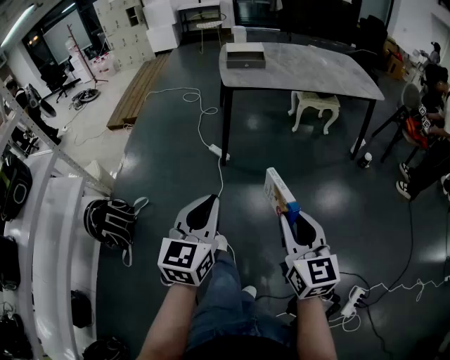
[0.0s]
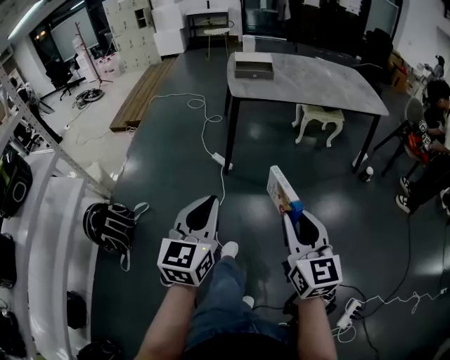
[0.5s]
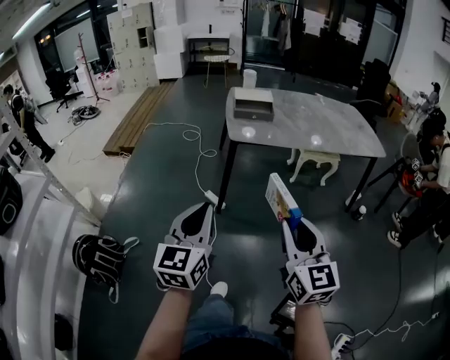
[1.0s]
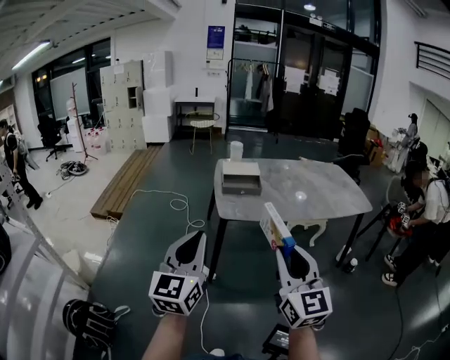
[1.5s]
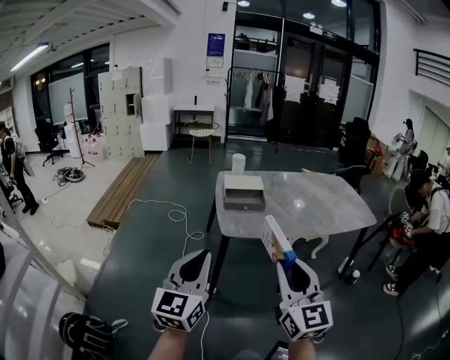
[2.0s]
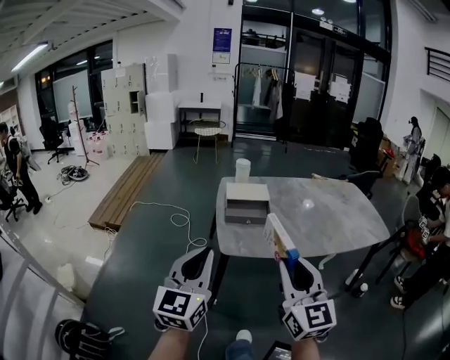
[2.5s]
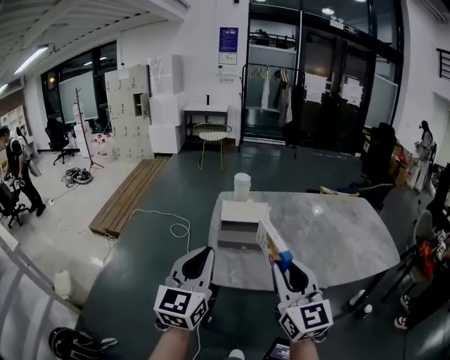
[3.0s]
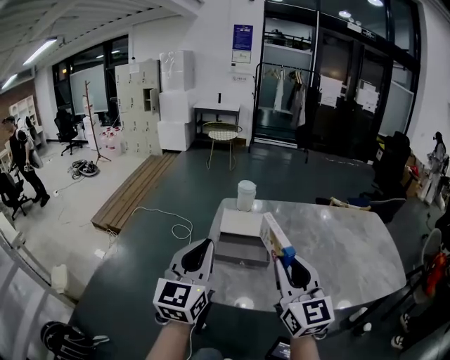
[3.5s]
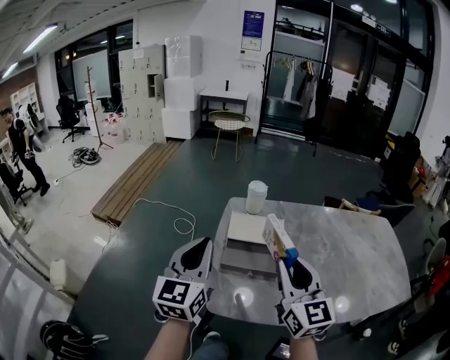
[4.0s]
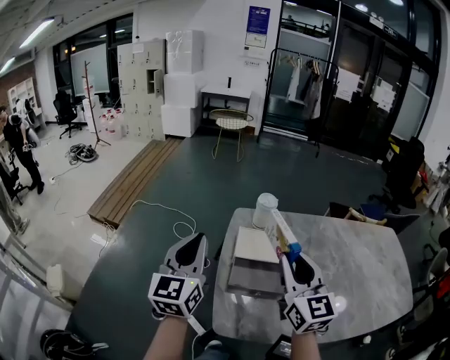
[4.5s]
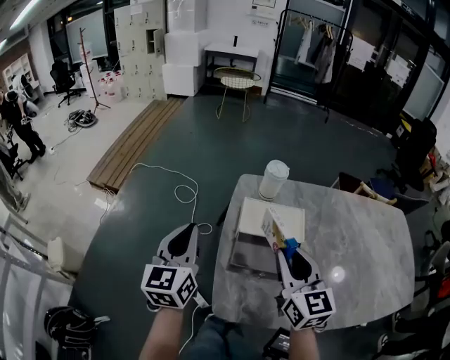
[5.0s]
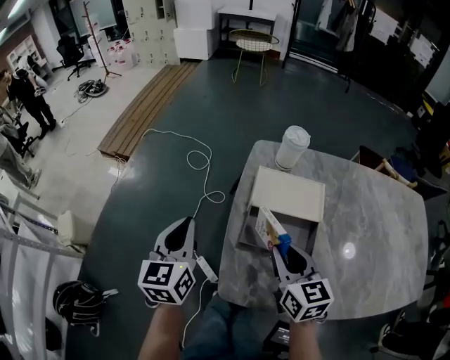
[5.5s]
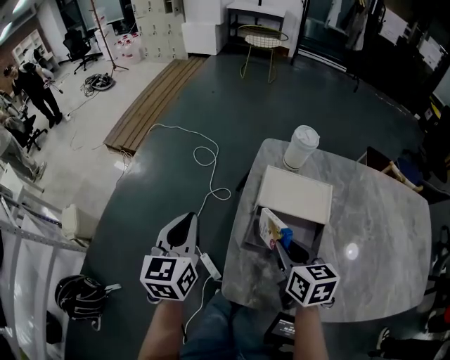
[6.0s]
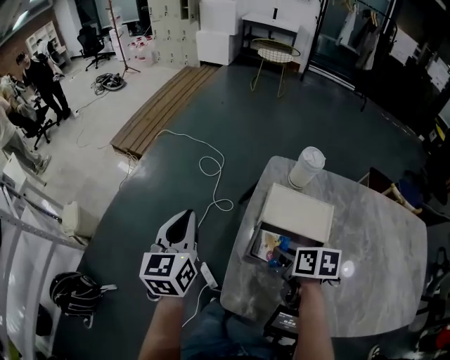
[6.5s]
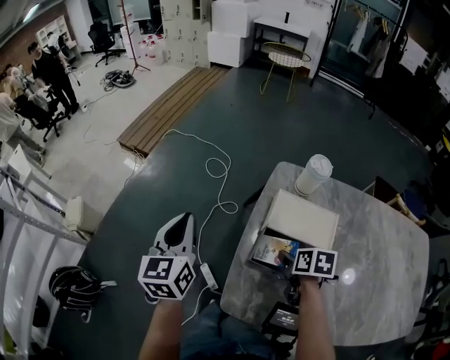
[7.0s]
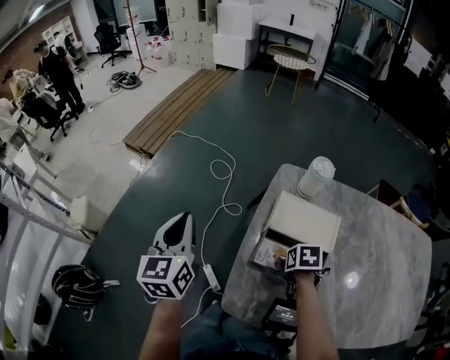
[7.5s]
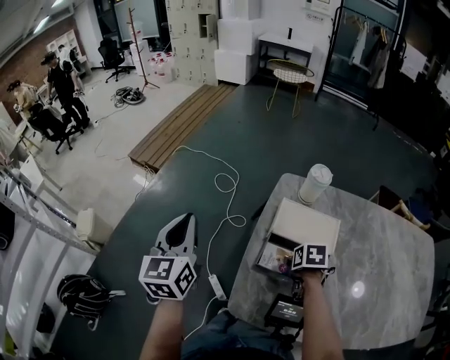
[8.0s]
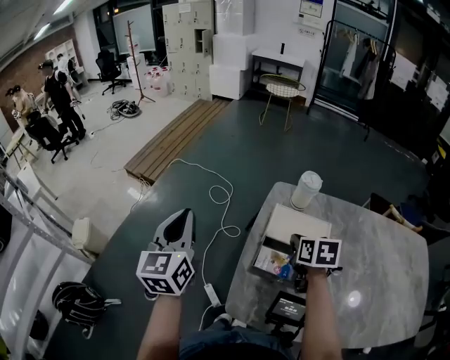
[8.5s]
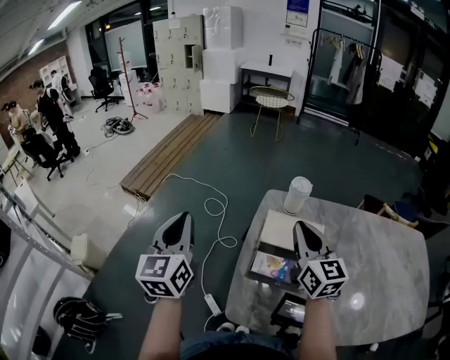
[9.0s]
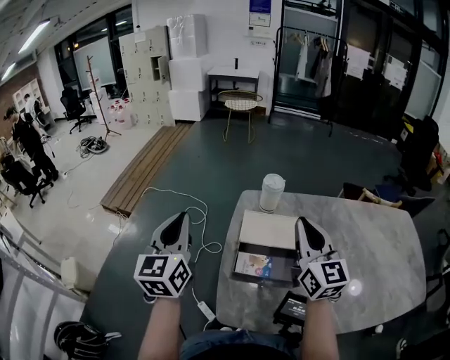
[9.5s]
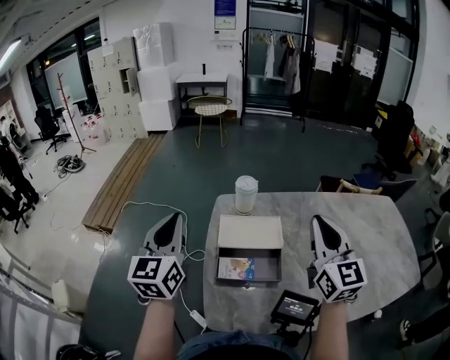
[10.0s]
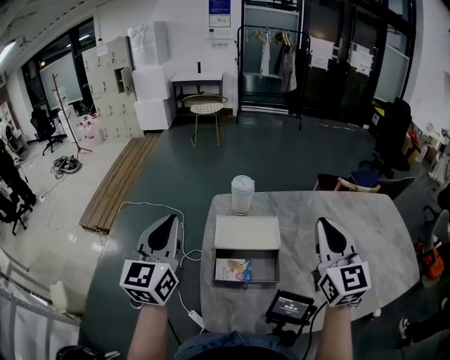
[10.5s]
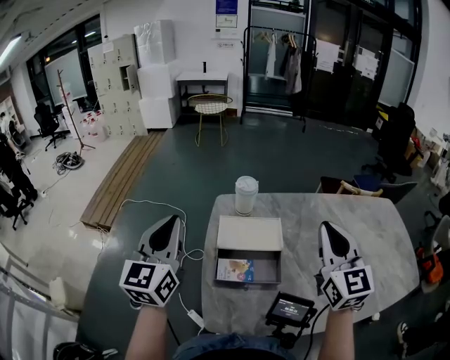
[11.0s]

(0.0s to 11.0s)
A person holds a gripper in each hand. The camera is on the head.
0.0s - 2.0s: The left gripper travels forward by roughly 30 cm; the right gripper is displaced forward and upward by approximately 35 cm, and turns by roughly 20 degrees.
2.0s - 3.5s: The grippers both shift forward by some 35 cm.
3.5s - 5.5s: The right gripper shifts some 25 cm downward and forward, and rotates roughly 40 degrees. Meanwhile the left gripper shifts roughly 25 cm downward, forward and to the left, and rotates some 30 degrees.
5.5s - 7.5s: The right gripper travels downward by some 15 cm, tilts its fingers approximately 50 degrees downward, and opens its fingers, while the left gripper ends up roughly 5 cm from where it was.
7.5s - 9.0s: The right gripper is displaced upward by roughly 30 cm, angles its fingers upward, by roughly 70 degrees, and closes, while the left gripper goes approximately 10 cm upward.
9.0s - 11.0s: The right gripper moves to the right, backward and upward, approximately 20 cm, and turns by roughly 30 degrees. The left gripper shifts some 10 cm to the right, and rotates roughly 20 degrees.

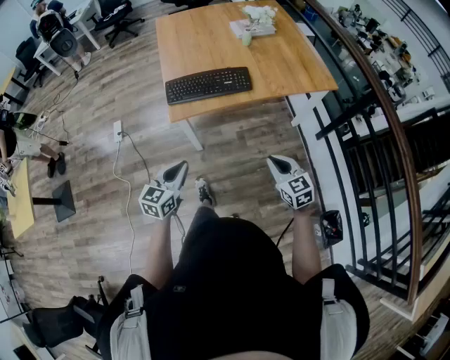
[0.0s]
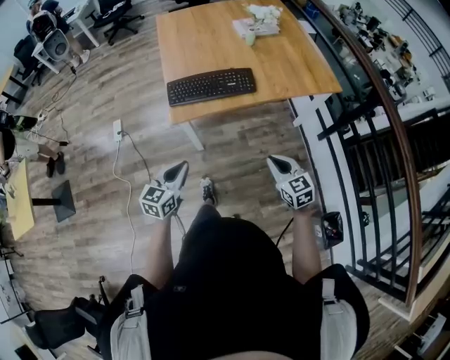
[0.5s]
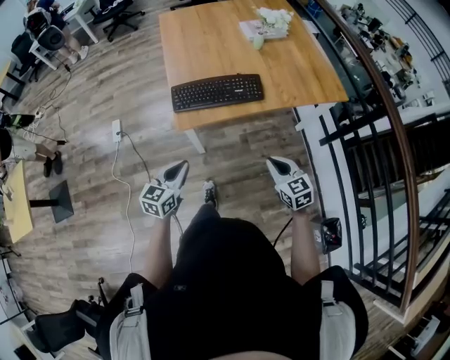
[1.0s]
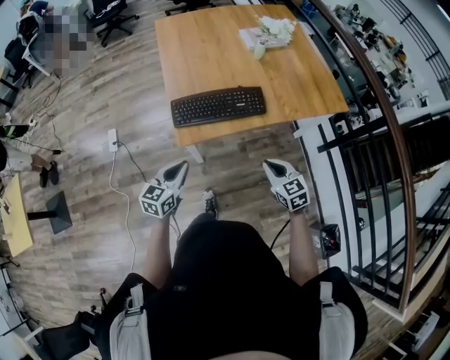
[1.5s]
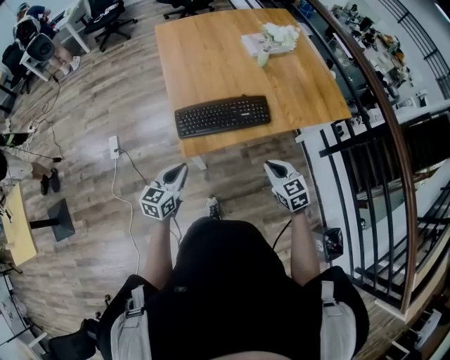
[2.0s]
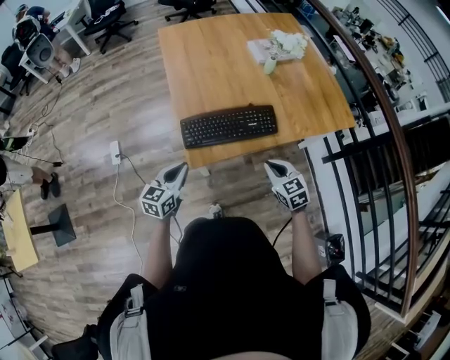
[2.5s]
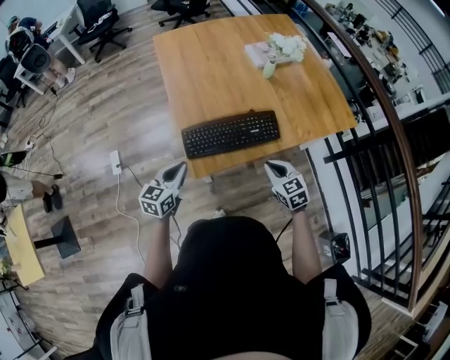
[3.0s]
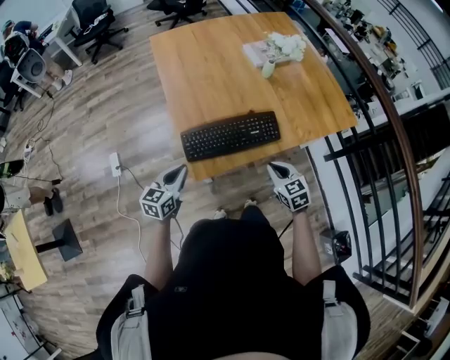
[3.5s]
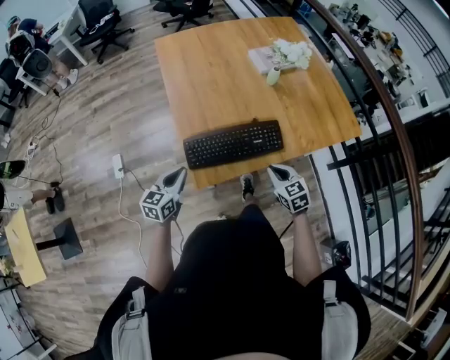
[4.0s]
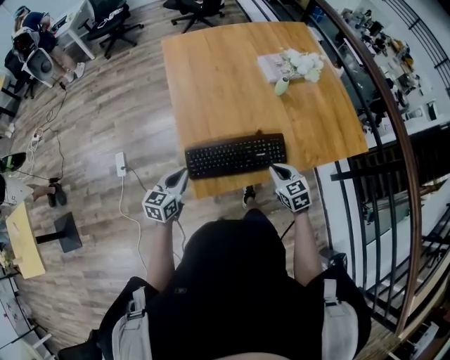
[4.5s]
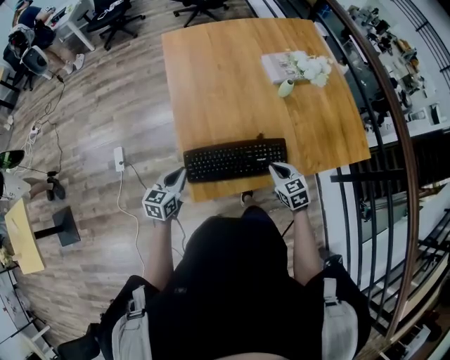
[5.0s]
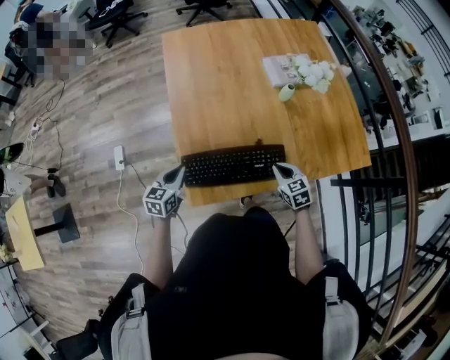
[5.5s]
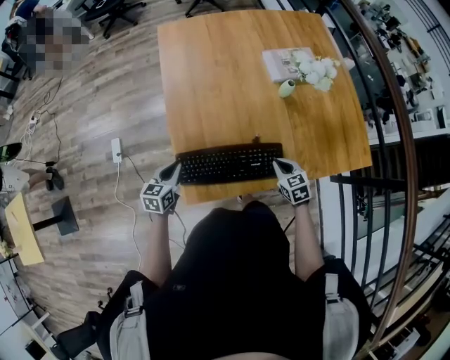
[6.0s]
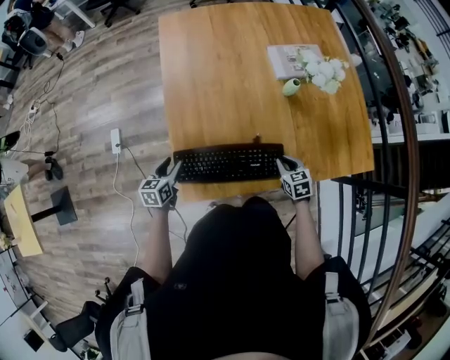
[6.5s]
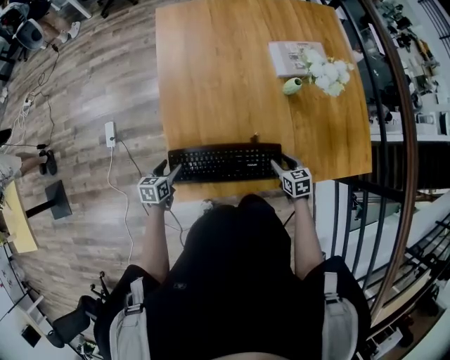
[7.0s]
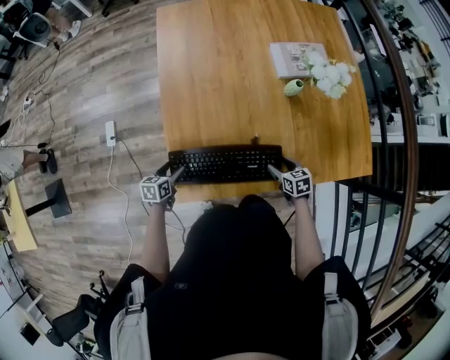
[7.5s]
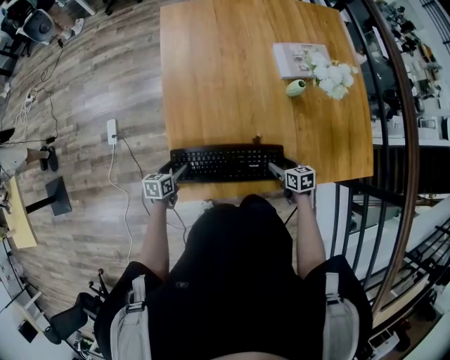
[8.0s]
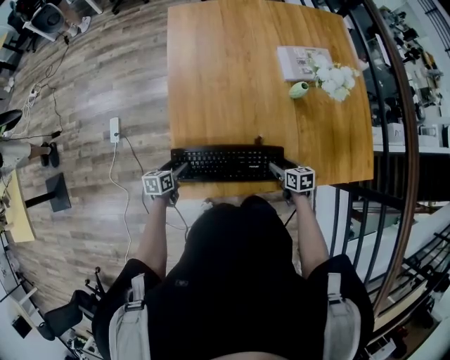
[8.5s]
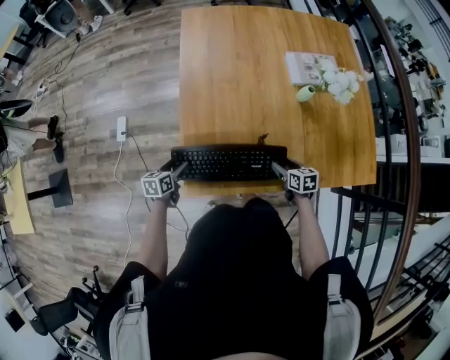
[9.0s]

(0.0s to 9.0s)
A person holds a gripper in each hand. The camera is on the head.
0.0s - 2.0s: The two grippers go about 25 cm forward and to the left.
2.0s - 4.5s: Both grippers travel together forward, about 20 cm.
4.5s - 7.0s: The right gripper travels downward, forward and to the right by some 20 cm, and opens up. Meanwhile the left gripper moves downward and forward, roughly 20 cm, rotates some 30 degrees, and opens up.
7.0s - 9.0s: The grippers stay close to where they were, moving slightly.

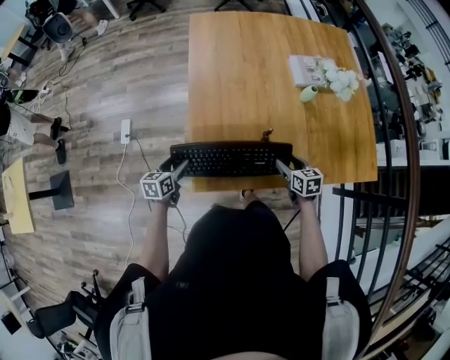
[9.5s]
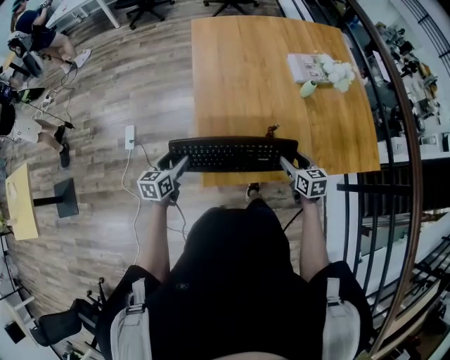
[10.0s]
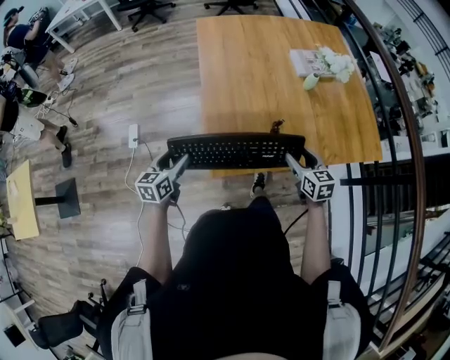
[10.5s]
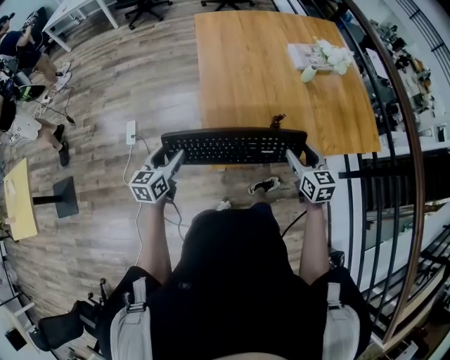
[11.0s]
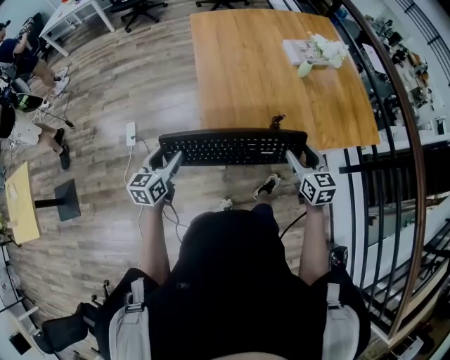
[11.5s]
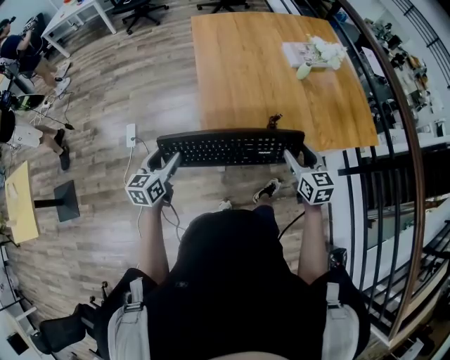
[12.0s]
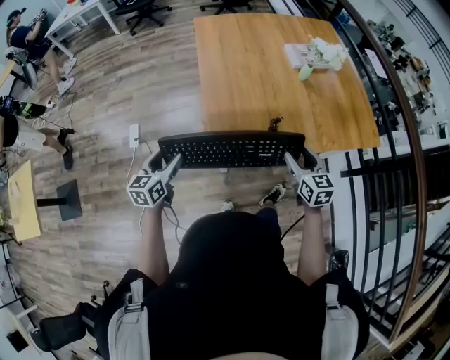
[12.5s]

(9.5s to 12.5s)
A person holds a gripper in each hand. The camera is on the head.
9.5s - 11.0s: Both grippers travel together upward, backward and to the left, roughly 20 cm. The right gripper rotates about 20 degrees.
11.0s - 12.5s: The grippers stay close to where they were, moving slightly.

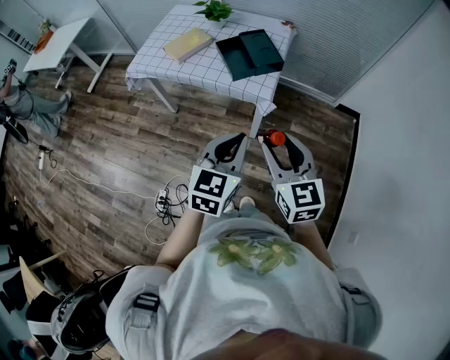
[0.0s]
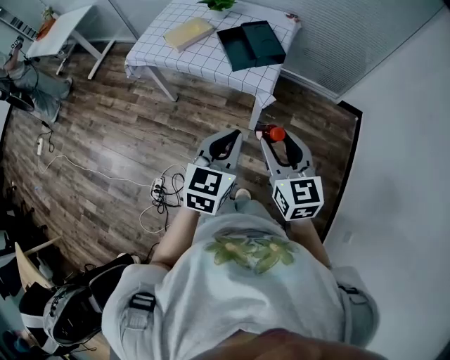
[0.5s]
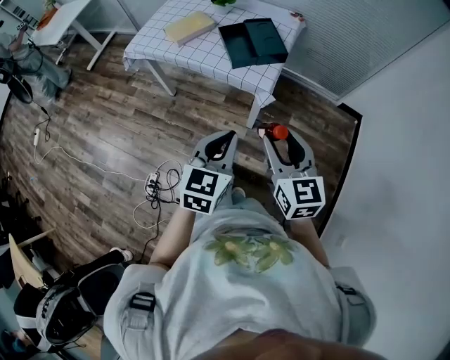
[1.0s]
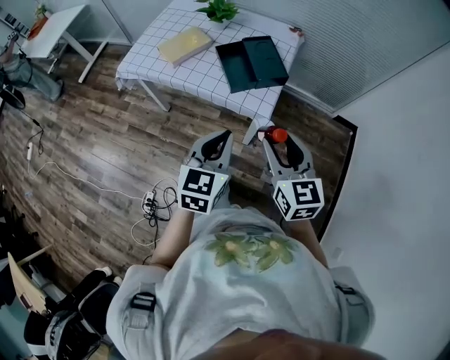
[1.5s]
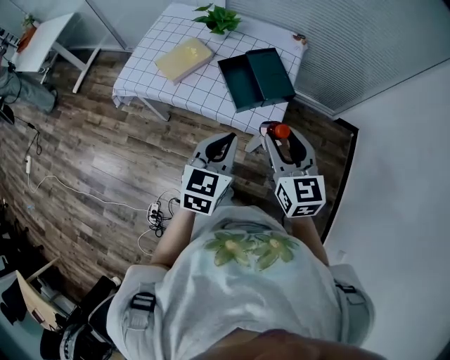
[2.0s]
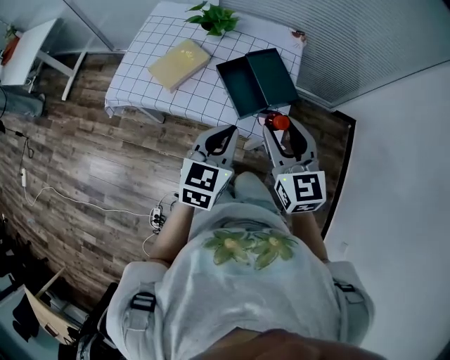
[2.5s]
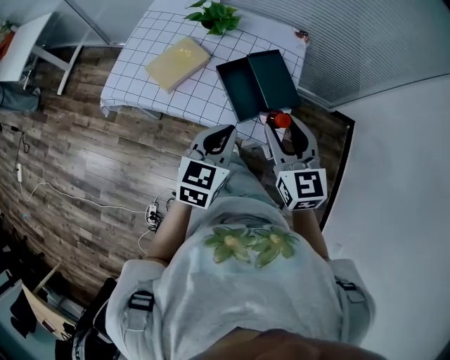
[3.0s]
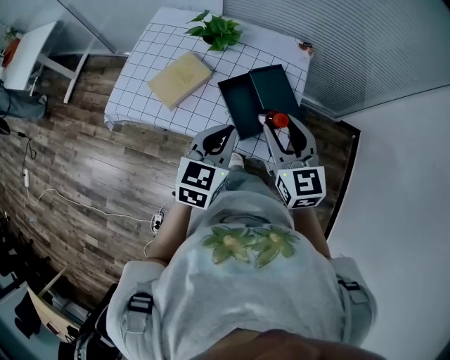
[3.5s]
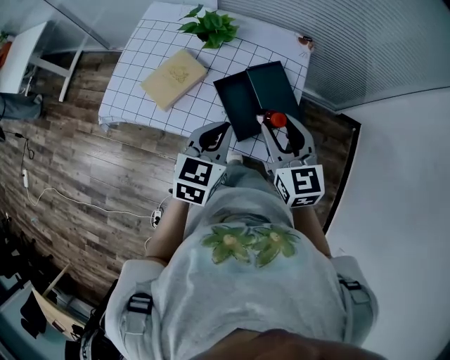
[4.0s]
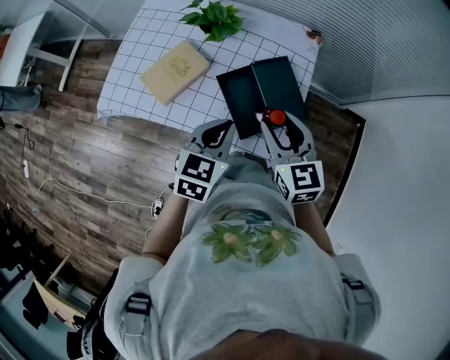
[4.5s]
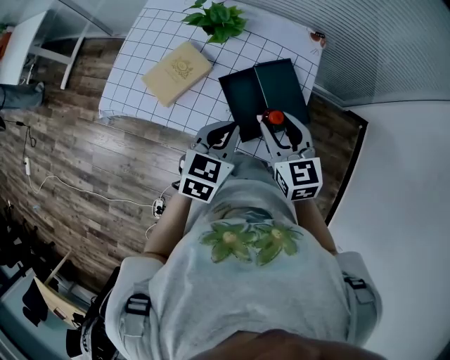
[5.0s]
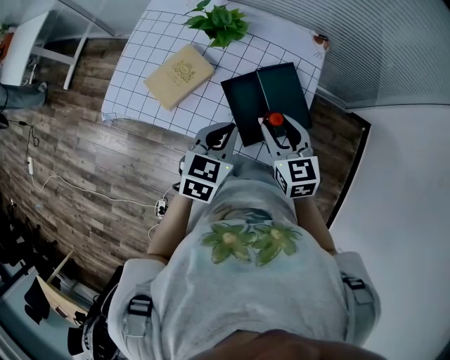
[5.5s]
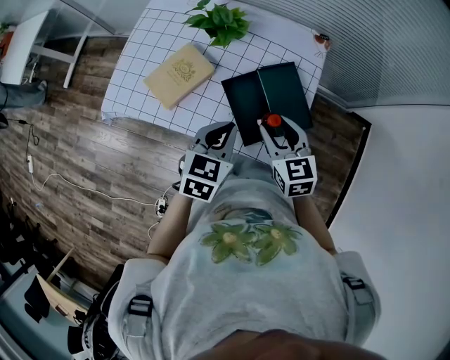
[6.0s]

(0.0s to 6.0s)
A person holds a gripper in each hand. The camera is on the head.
0.0s - 2.0s: Both grippers move forward, roughly 20 cm.
2.0s - 4.0s: Both grippers travel together forward, approximately 20 cm.
4.0s - 6.0s: The left gripper changes place by roughly 5 cm, while the right gripper heads downward, covering some 10 cm.
